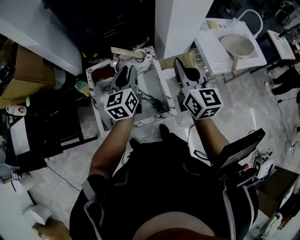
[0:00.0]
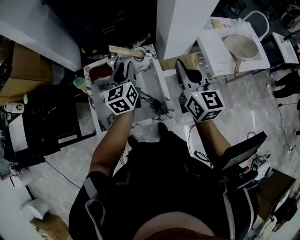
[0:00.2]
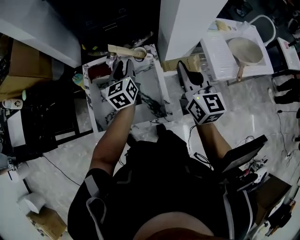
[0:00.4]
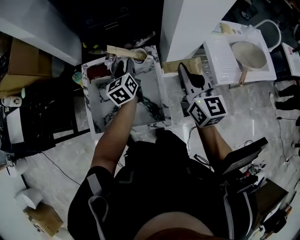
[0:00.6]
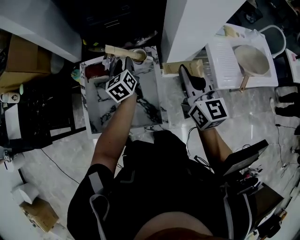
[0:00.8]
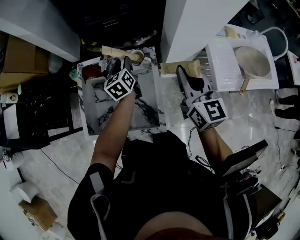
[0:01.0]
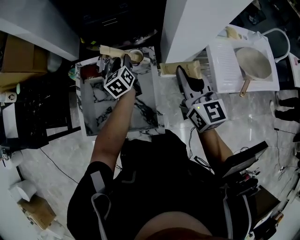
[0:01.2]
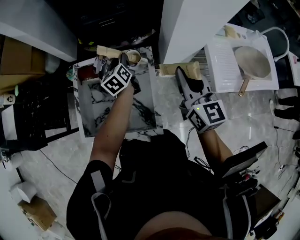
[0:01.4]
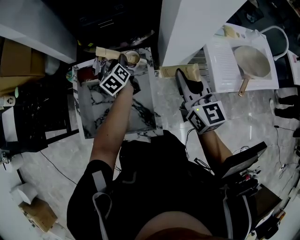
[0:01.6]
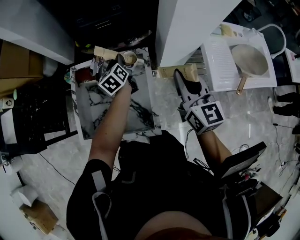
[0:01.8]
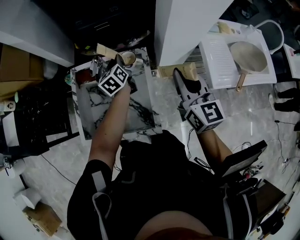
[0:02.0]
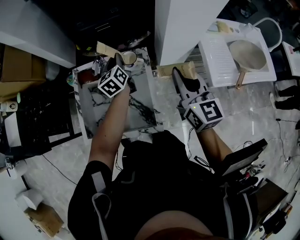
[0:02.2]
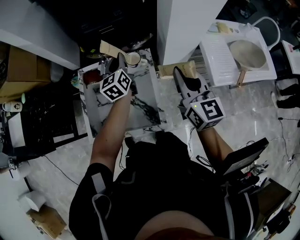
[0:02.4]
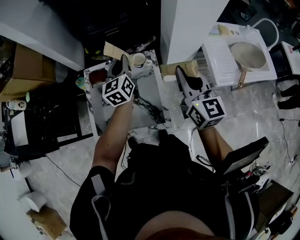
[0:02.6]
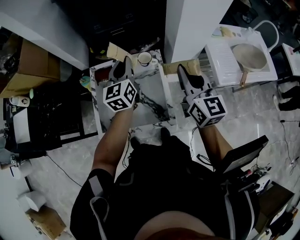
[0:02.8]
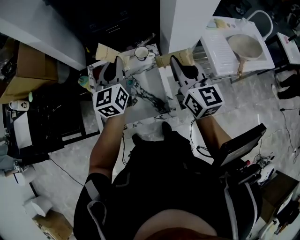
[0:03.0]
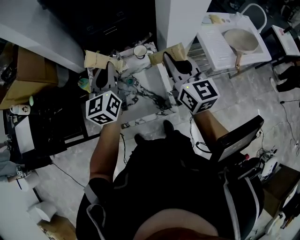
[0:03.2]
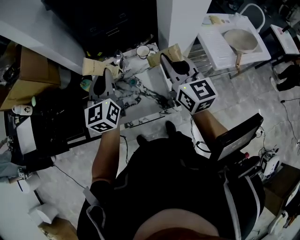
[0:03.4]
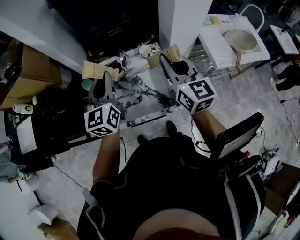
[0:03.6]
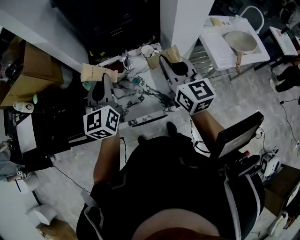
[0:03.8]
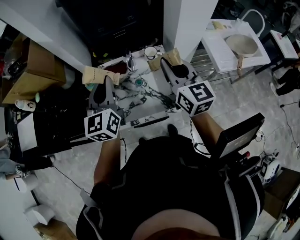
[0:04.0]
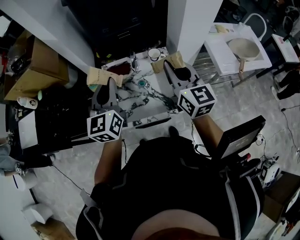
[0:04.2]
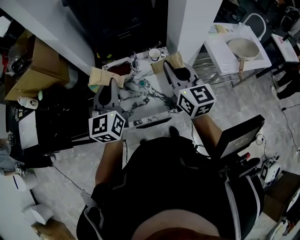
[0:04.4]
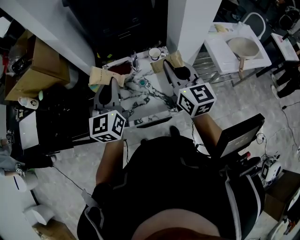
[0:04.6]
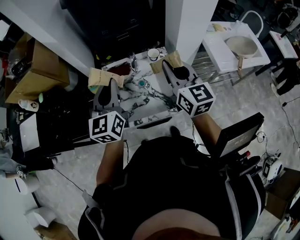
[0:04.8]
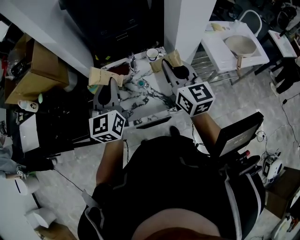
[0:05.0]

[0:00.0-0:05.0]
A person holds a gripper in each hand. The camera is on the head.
0.0 to 1.6 s: The right gripper is displaced downward, forward and to the right by roughly 10 cm. The left gripper heads downward and forward, covering approximately 25 cm, and turns by roughly 30 degrees.
1.6 to 3.4 s: The left gripper shifts some 30 cm upward, backward and to the left, rotates roughly 40 degrees, and closes up. The right gripper moves to the left, upward and backward, about 15 cm.
3.4 to 5.0 s: The left gripper goes approximately 5 cm backward. Meanwhile the right gripper shifts approximately 5 cm to the left.

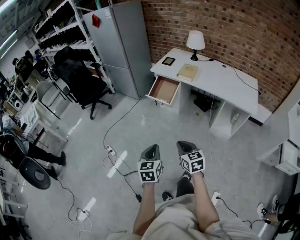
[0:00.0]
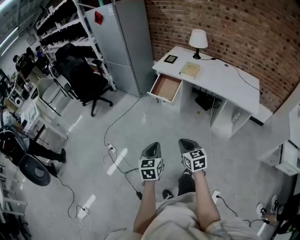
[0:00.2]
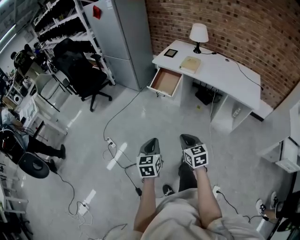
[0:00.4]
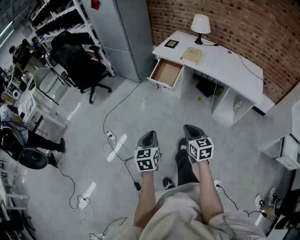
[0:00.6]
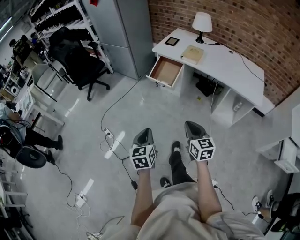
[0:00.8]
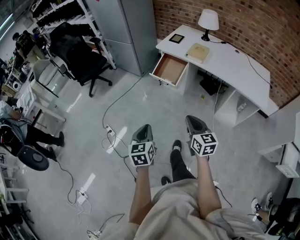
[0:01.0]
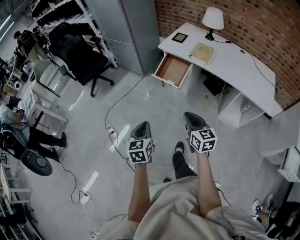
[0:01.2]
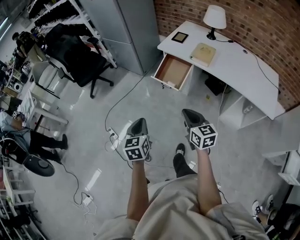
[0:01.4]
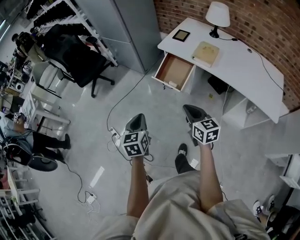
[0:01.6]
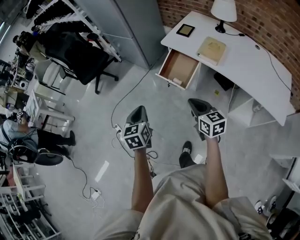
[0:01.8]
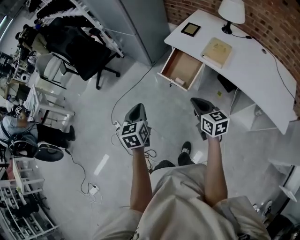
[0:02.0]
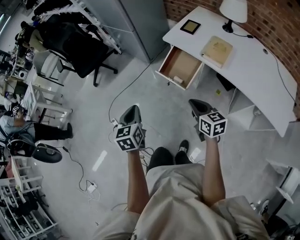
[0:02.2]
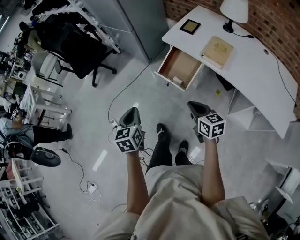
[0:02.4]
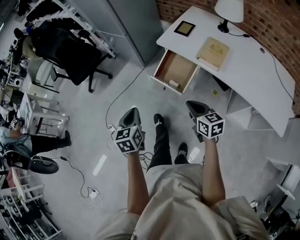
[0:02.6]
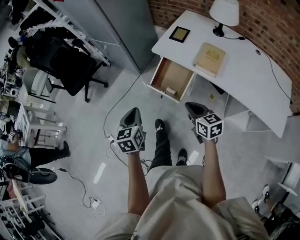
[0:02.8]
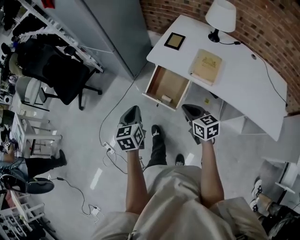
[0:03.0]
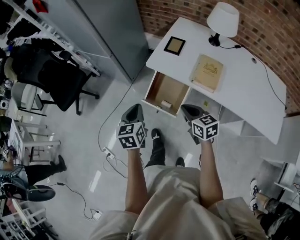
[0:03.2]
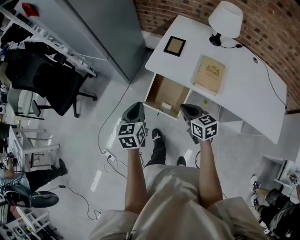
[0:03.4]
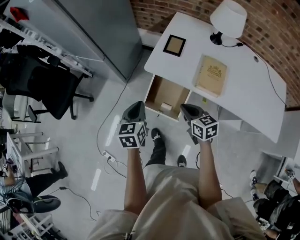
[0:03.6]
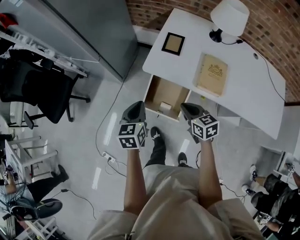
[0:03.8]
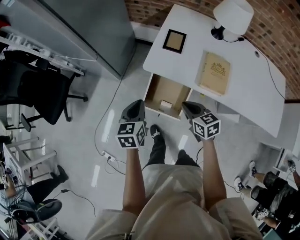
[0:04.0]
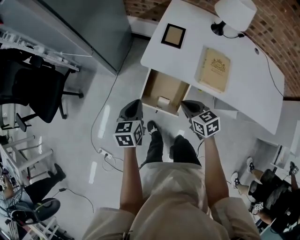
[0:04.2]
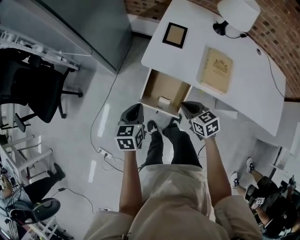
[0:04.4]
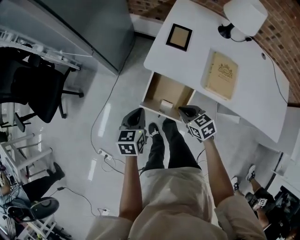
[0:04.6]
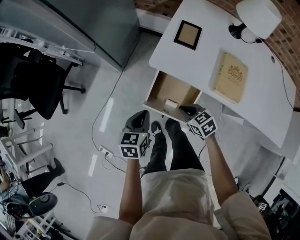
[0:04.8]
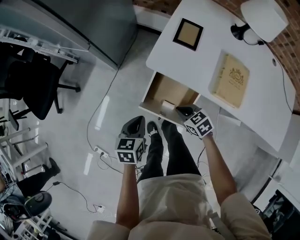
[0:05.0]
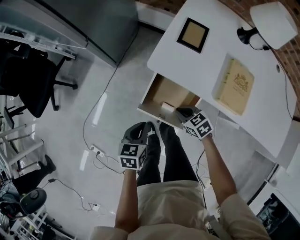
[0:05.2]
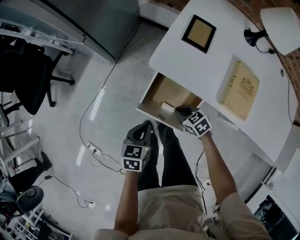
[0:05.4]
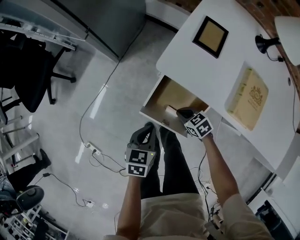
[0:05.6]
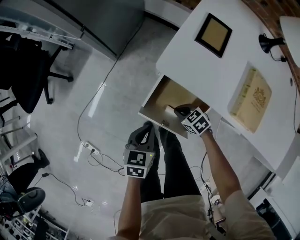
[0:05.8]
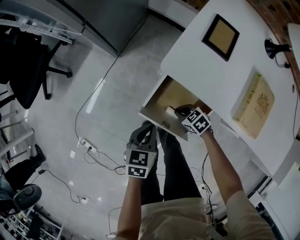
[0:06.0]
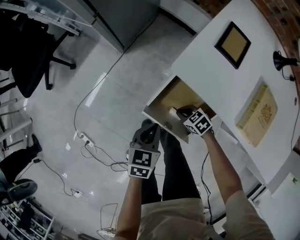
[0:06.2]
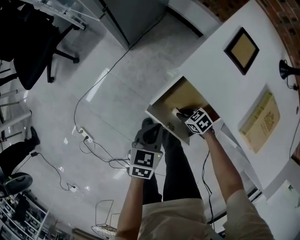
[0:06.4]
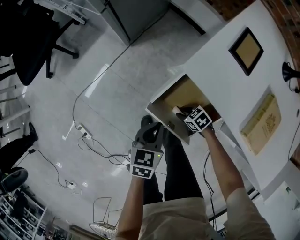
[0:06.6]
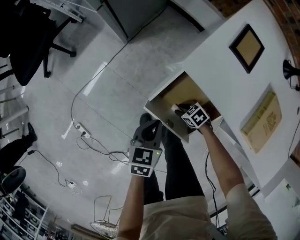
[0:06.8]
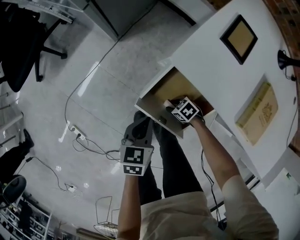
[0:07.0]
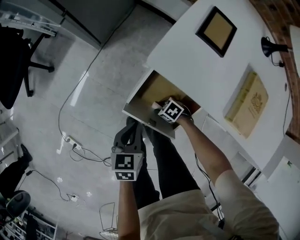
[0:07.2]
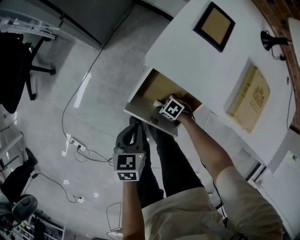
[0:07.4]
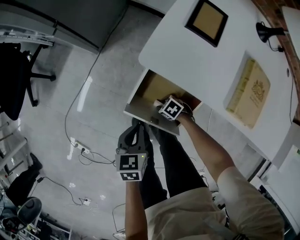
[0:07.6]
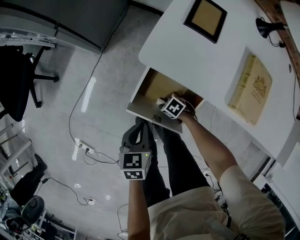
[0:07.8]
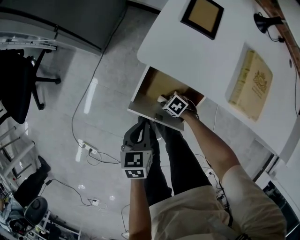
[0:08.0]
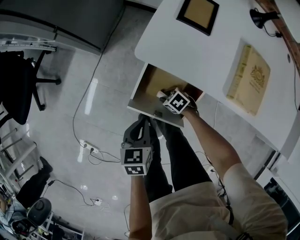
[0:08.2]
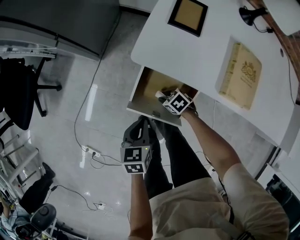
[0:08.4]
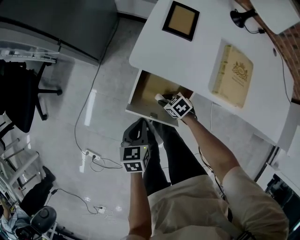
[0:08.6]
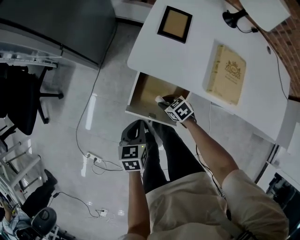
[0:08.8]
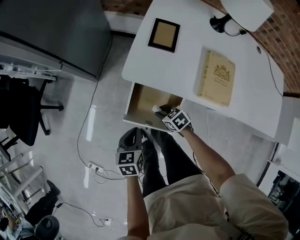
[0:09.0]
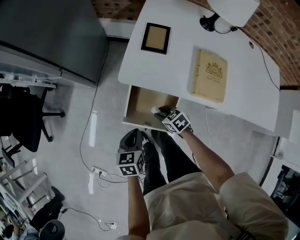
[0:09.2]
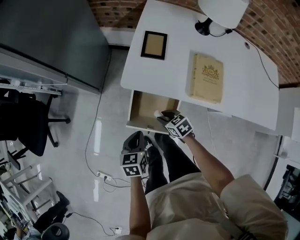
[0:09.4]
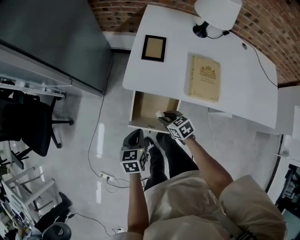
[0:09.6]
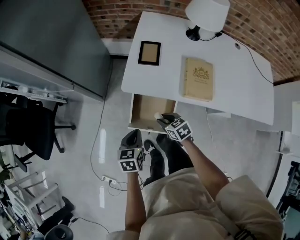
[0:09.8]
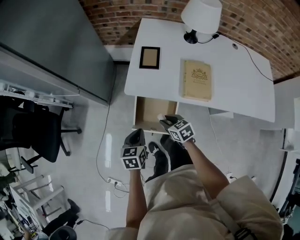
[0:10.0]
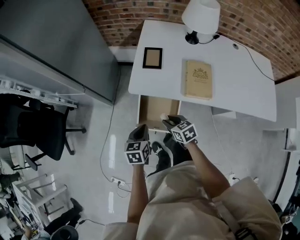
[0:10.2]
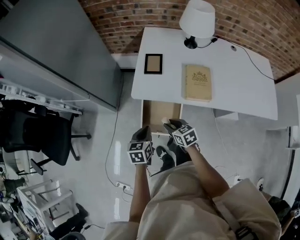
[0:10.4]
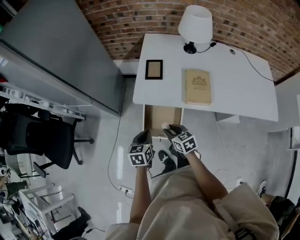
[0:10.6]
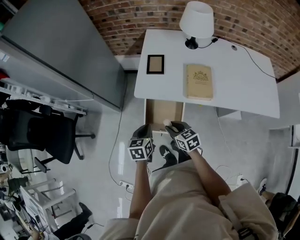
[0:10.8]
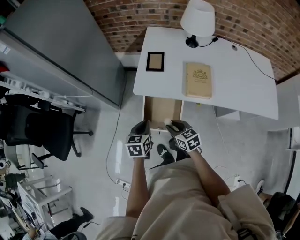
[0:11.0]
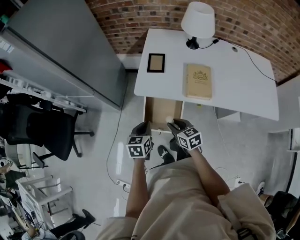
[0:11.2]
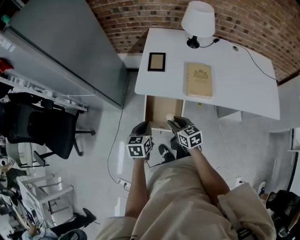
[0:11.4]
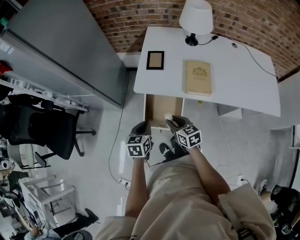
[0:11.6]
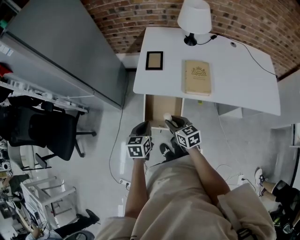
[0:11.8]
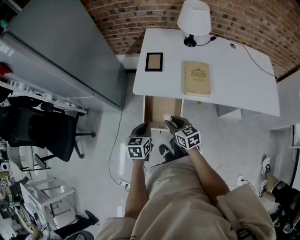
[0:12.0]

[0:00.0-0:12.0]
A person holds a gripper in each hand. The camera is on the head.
0.0 to 1.6 s: Both grippers move forward, about 30 cm.
1.6 to 3.0 s: The right gripper heads forward and to the right, covering about 25 cm, while the left gripper heads forward, covering about 30 cm.
3.0 to 4.4 s: The two grippers go approximately 20 cm forward and downward. The left gripper swivels approximately 20 degrees.
4.4 to 6.0 s: The right gripper goes about 30 cm downward, and rotates some 40 degrees. The left gripper is displaced downward by about 20 cm.
6.0 to 7.6 s: The right gripper heads downward, covering approximately 10 cm, and opens its fingers.
7.6 to 9.0 s: The left gripper is displaced upward by approximately 10 cm; the right gripper travels upward by roughly 20 cm, and turns by roughly 30 degrees.
9.0 to 10.4 s: The left gripper shifts approximately 15 cm upward, while the right gripper travels upward by some 20 cm, and rotates roughly 30 degrees.
10.4 to 12.0 s: The right gripper travels upward by about 5 cm.

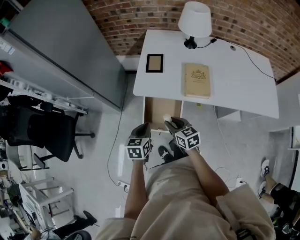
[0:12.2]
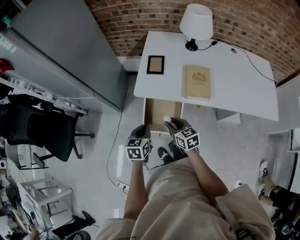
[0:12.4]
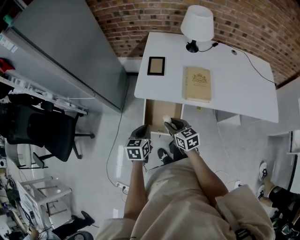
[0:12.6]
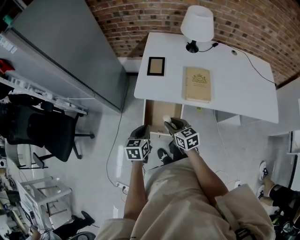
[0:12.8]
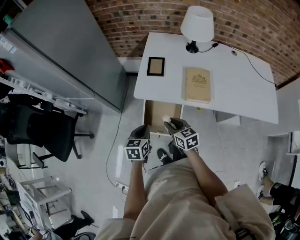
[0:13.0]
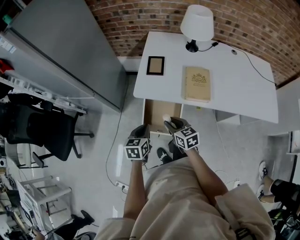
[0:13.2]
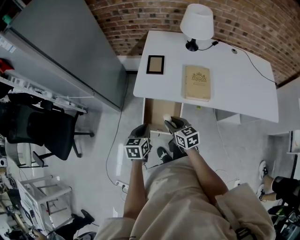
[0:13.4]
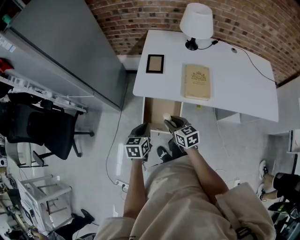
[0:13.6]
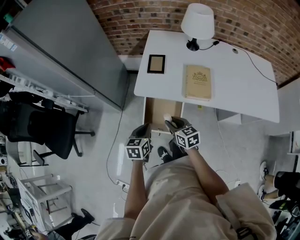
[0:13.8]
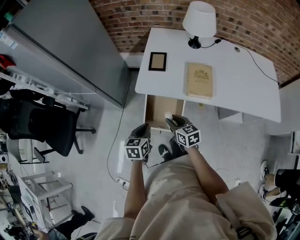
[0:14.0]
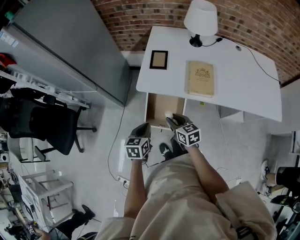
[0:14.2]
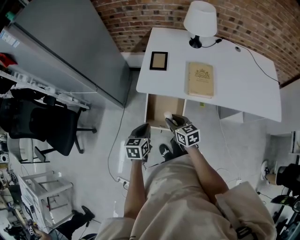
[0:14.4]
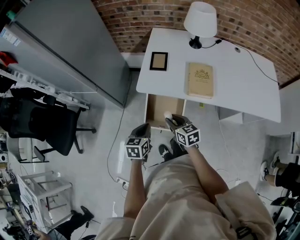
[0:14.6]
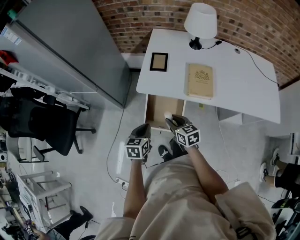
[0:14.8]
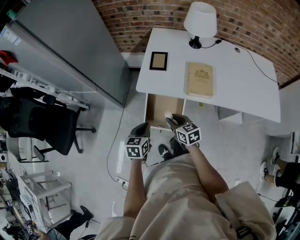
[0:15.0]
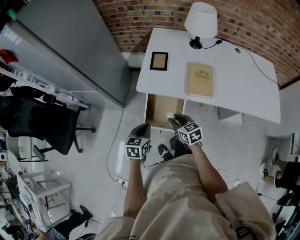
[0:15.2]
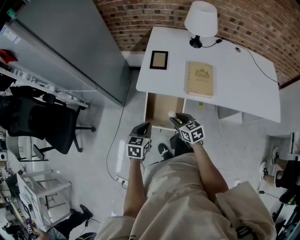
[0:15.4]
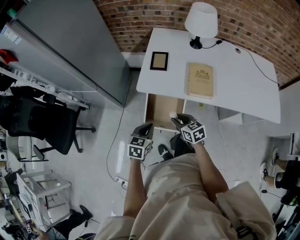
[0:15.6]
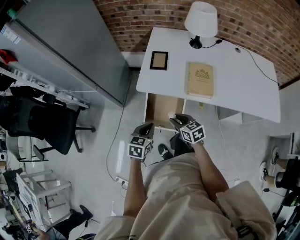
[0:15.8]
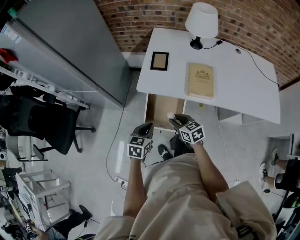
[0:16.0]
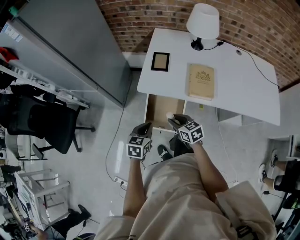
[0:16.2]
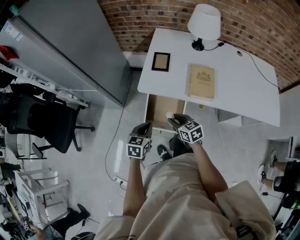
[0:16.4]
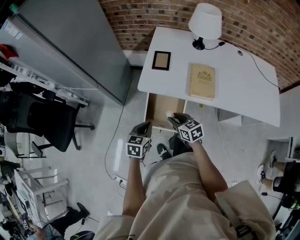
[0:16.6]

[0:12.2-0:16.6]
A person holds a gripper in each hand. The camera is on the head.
12.2 to 16.6 s: The grippers make only small movements.

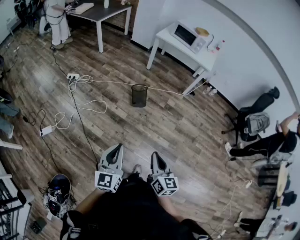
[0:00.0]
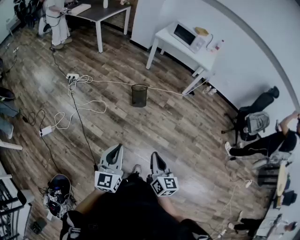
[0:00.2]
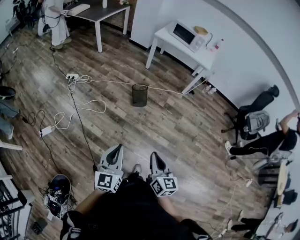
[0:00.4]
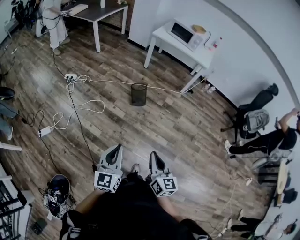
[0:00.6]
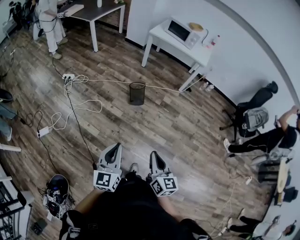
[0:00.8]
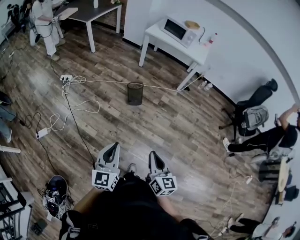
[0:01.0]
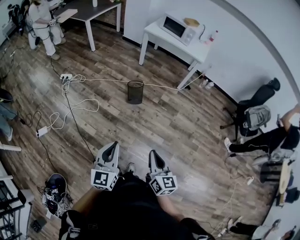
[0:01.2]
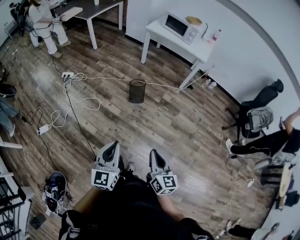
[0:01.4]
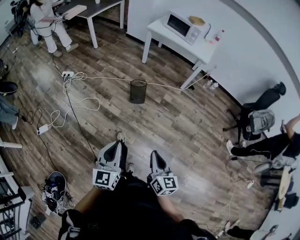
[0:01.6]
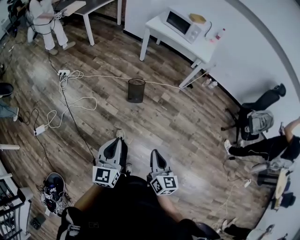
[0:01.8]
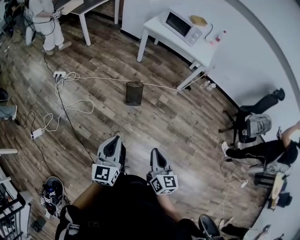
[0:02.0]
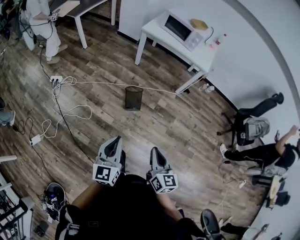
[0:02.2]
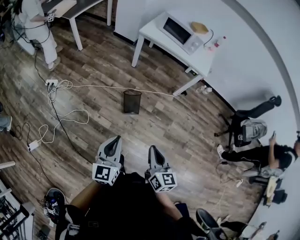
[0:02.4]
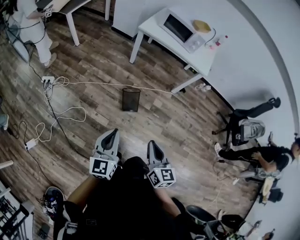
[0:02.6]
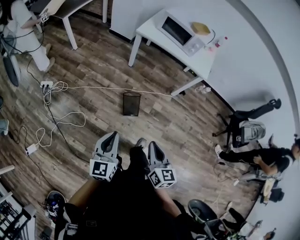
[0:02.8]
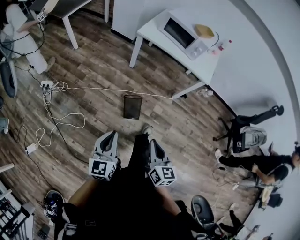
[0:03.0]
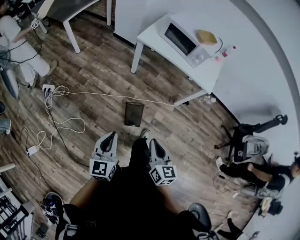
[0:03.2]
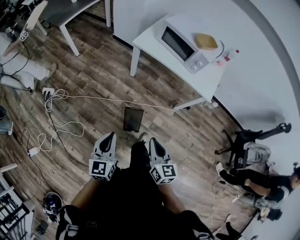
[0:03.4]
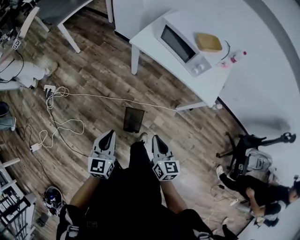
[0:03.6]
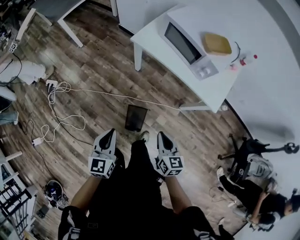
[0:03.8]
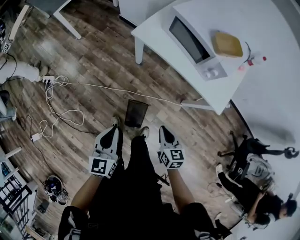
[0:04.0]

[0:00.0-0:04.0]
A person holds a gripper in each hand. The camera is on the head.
0.0 to 1.4 s: Both grippers travel together to the right, about 10 cm.
1.4 to 2.6 s: Both grippers travel together forward, approximately 35 cm.
2.6 to 4.0 s: The left gripper heads forward and to the right, covering about 40 cm, while the right gripper goes approximately 50 cm forward, to the right and downward, and swivels some 20 degrees.
